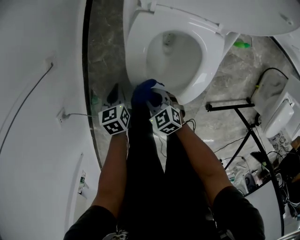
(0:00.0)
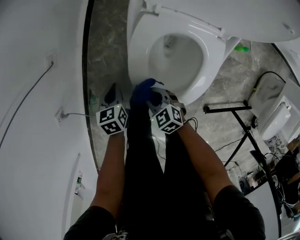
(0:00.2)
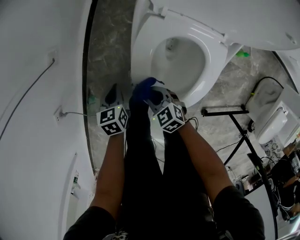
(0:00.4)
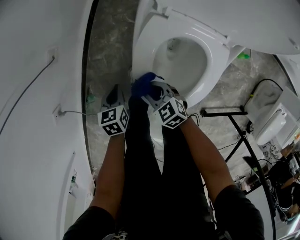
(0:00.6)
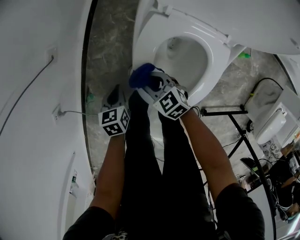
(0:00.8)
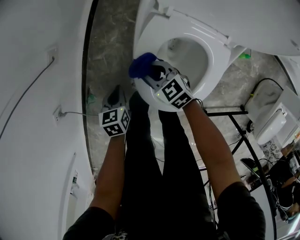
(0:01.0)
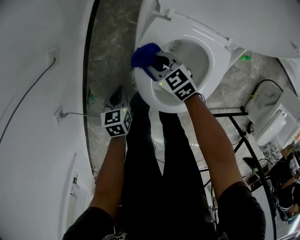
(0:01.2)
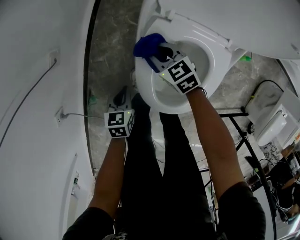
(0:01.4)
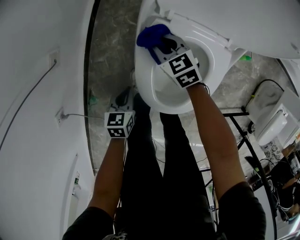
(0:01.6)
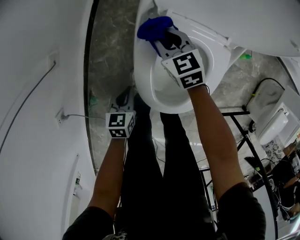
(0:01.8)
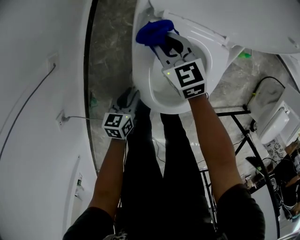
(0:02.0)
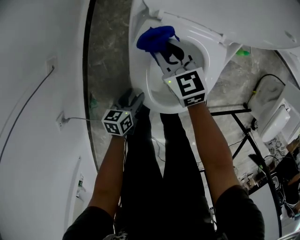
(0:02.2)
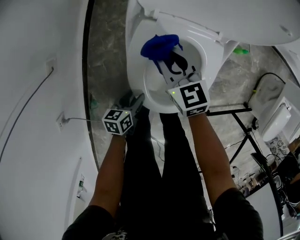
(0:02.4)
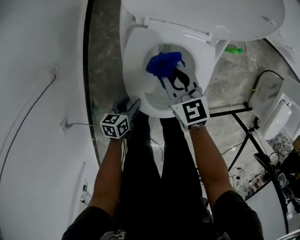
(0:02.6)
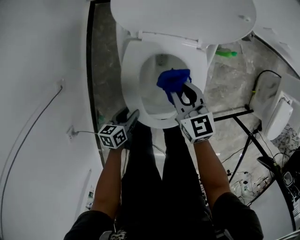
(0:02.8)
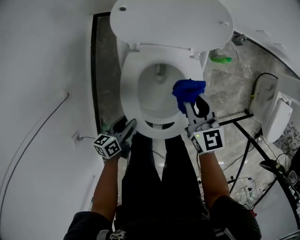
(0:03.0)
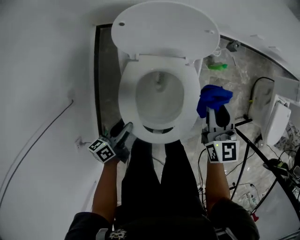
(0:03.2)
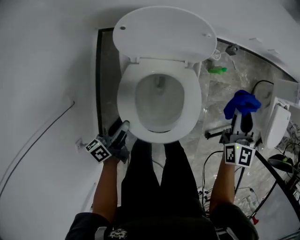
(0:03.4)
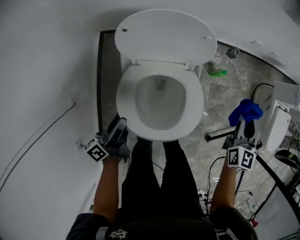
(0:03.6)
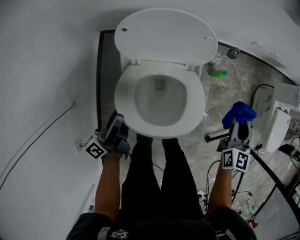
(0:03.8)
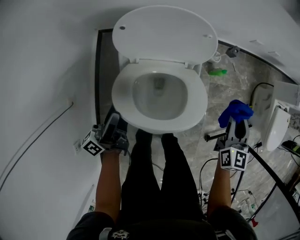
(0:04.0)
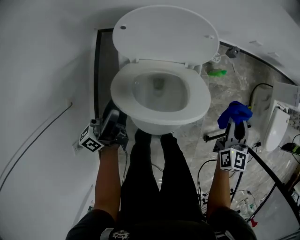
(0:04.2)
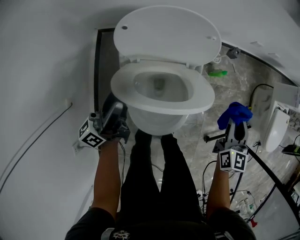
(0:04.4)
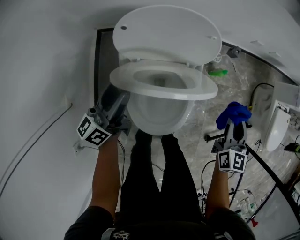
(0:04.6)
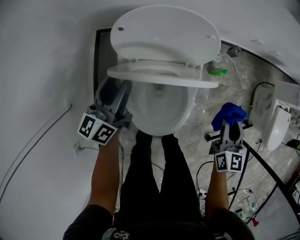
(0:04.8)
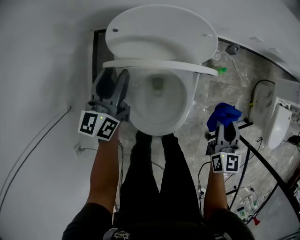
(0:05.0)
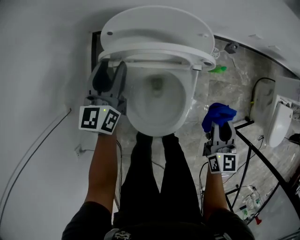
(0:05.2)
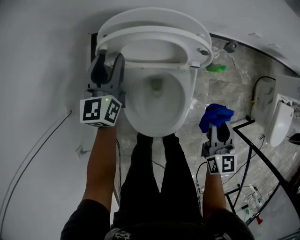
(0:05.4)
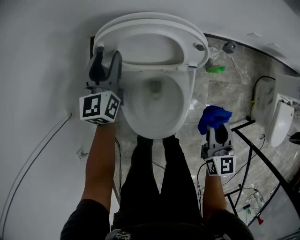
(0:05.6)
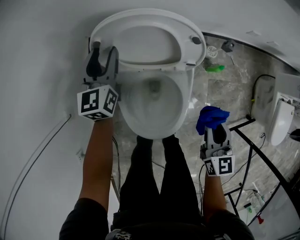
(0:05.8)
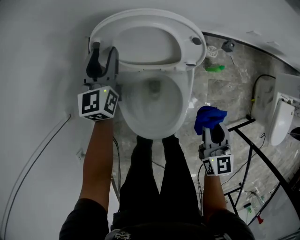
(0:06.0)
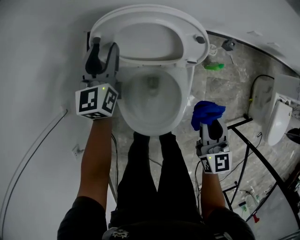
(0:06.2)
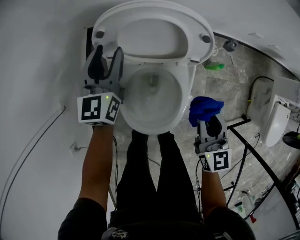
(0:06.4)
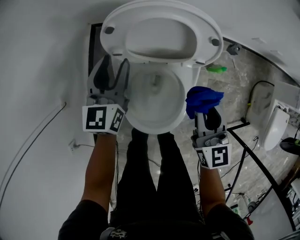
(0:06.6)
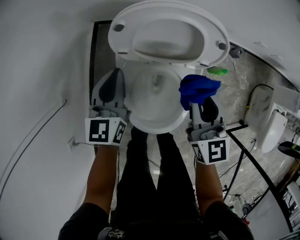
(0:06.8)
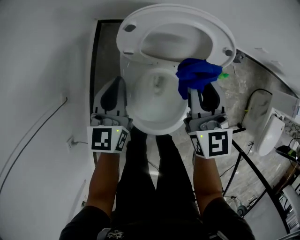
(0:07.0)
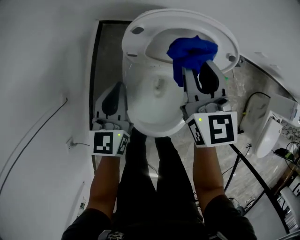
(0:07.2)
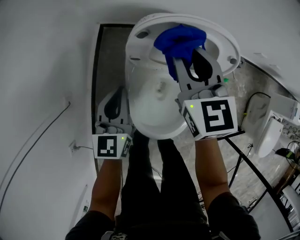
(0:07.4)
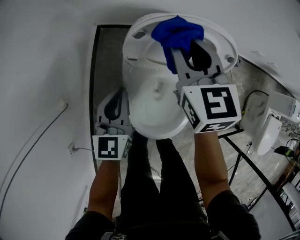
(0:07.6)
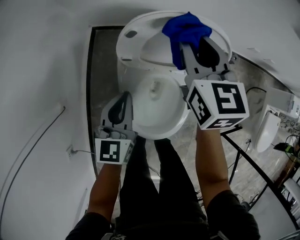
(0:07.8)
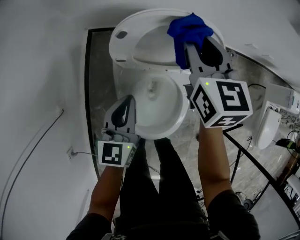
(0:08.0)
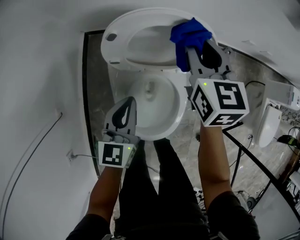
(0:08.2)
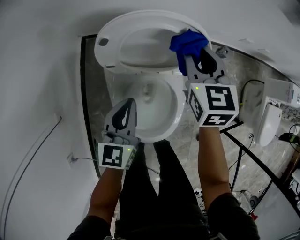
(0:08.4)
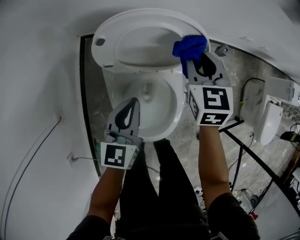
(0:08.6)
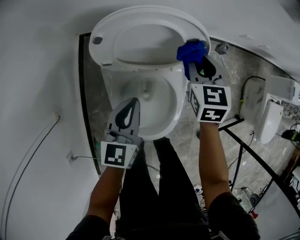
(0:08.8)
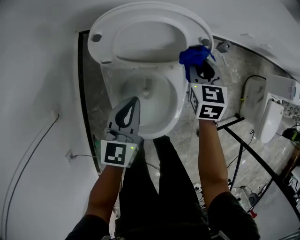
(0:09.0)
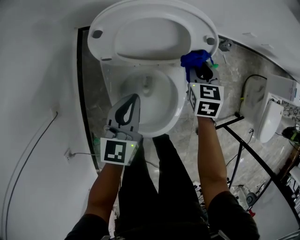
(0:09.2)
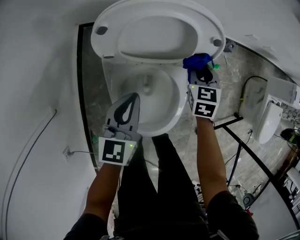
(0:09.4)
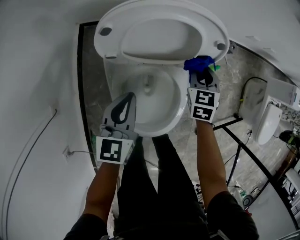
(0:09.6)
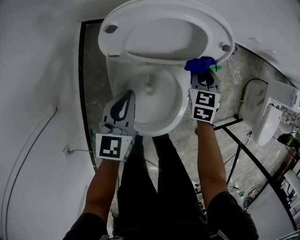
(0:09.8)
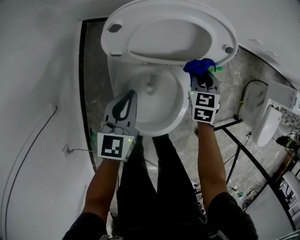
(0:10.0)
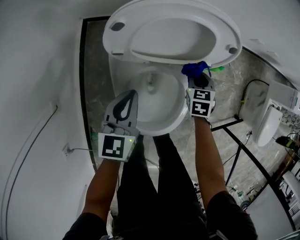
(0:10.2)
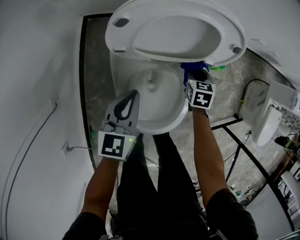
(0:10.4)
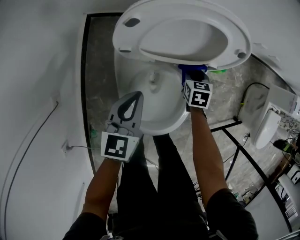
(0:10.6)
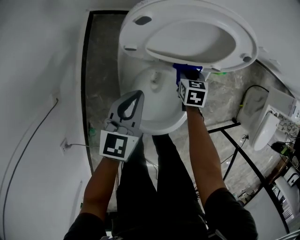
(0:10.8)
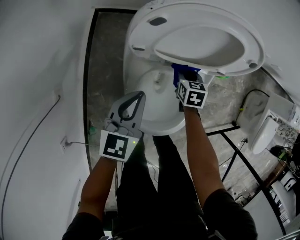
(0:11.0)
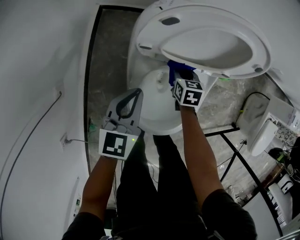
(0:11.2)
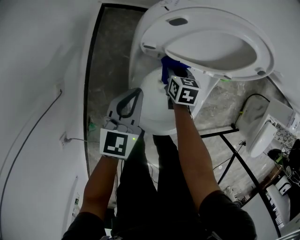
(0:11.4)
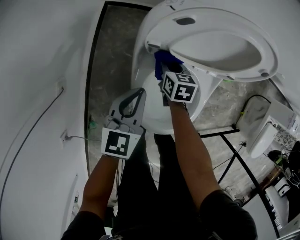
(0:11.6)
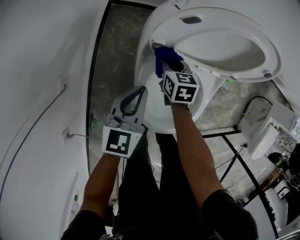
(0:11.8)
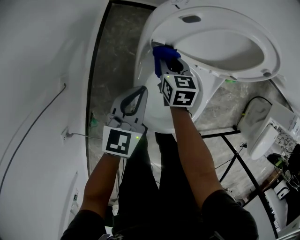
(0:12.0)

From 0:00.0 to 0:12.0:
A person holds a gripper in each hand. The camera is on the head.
From 0:00.0 to 0:01.6: The right gripper is displaced forward and to the right by approximately 25 cm.
From 0:01.6 to 0:03.0: The right gripper moves upward, roughly 20 cm, and turns by roughly 40 degrees, while the left gripper shifts some 10 cm upward, swivels approximately 30 degrees, and opens its fingers.
From 0:03.0 to 0:04.4: The left gripper moves upward and forward, approximately 25 cm, and points its fingers some 50 degrees further upward. The right gripper goes about 20 cm to the right, and rotates about 30 degrees.
From 0:04.4 to 0:06.0: The left gripper goes some 20 cm forward, and rolls clockwise, seen from behind, by roughly 50 degrees. Meanwhile the right gripper shifts about 5 cm to the left.
From 0:06.0 to 0:07.6: The left gripper travels backward and to the left by some 15 cm, and closes. The right gripper travels forward, to the left and upward by about 35 cm, and changes its angle by about 20 degrees.
From 0:07.6 to 0:09.0: The left gripper is displaced to the right by about 10 cm, while the right gripper heads to the right and downward, covering about 25 cm, and swivels about 20 degrees.
From 0:09.0 to 0:10.4: The right gripper heads downward, covering some 15 cm. The left gripper changes place by some 5 cm.
From 0:10.4 to 0:12.0: The left gripper shifts about 5 cm to the left; the right gripper heads to the left, covering approximately 25 cm, and changes its angle by some 20 degrees.

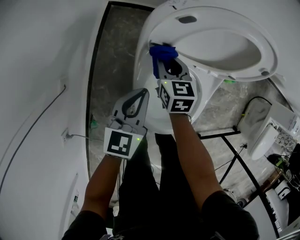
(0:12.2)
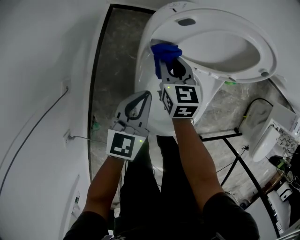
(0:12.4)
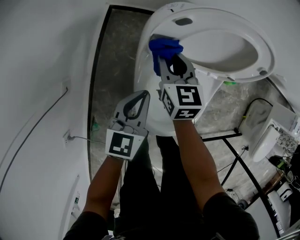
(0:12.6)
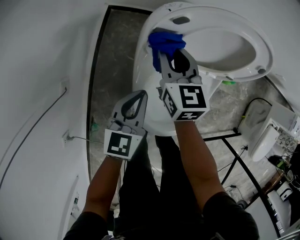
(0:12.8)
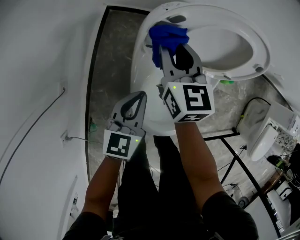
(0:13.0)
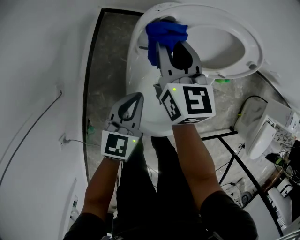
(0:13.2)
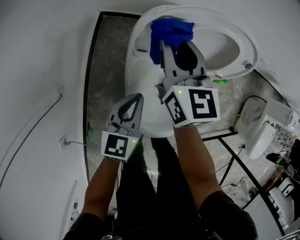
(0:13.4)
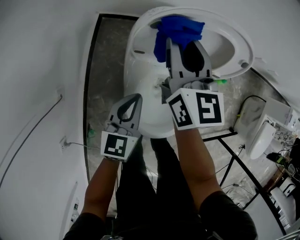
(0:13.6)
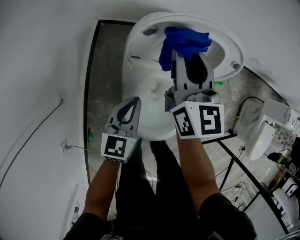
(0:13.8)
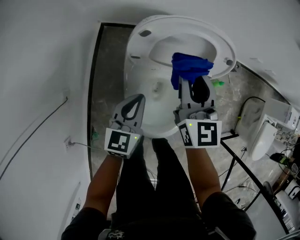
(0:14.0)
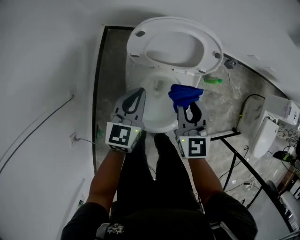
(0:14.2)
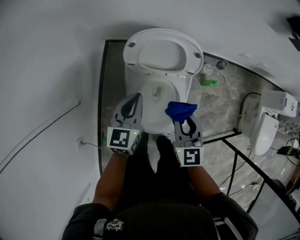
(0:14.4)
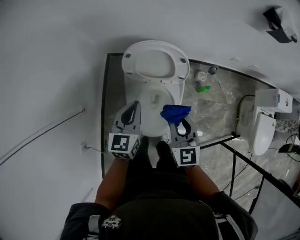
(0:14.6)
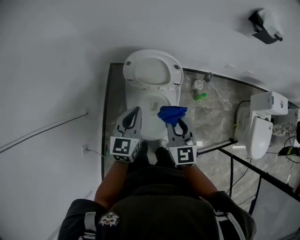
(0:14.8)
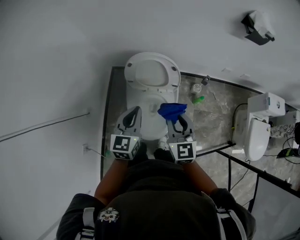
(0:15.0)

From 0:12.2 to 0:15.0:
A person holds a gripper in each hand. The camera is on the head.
From 0:12.2 to 0:13.6: The right gripper is displaced upward by some 20 cm, and rotates about 30 degrees.
From 0:13.6 to 0:15.0: The left gripper travels upward by roughly 25 cm. The right gripper heads backward, upward and to the right, covering some 35 cm.

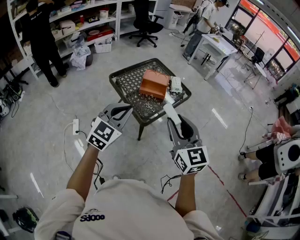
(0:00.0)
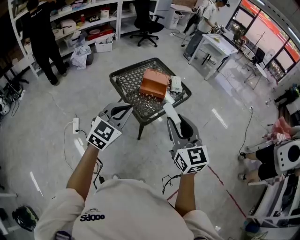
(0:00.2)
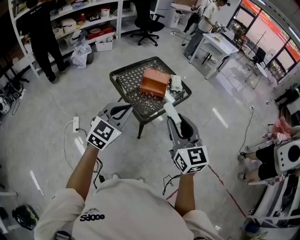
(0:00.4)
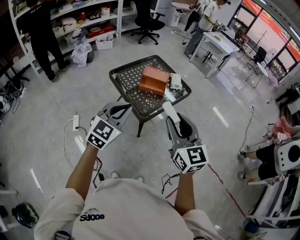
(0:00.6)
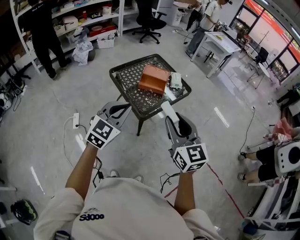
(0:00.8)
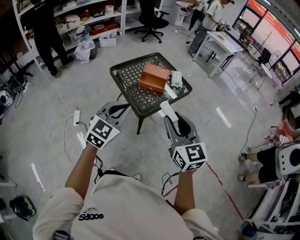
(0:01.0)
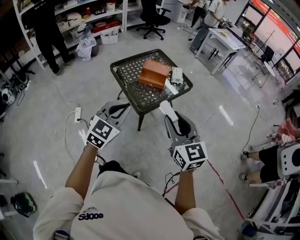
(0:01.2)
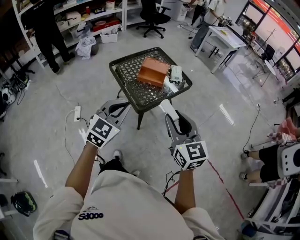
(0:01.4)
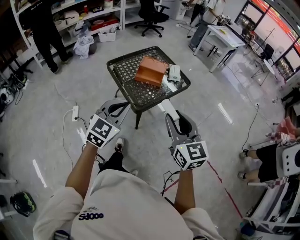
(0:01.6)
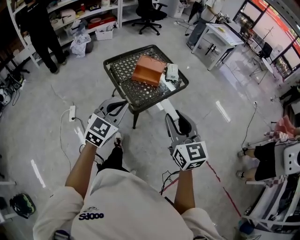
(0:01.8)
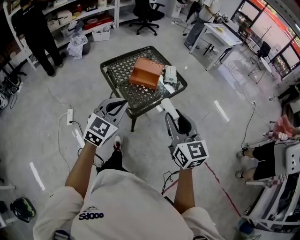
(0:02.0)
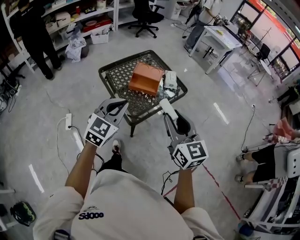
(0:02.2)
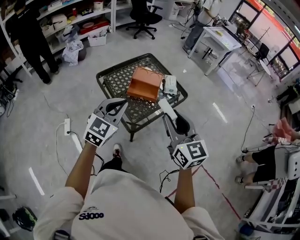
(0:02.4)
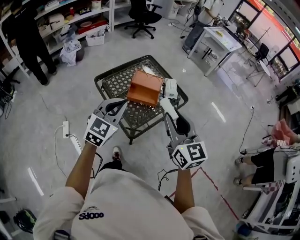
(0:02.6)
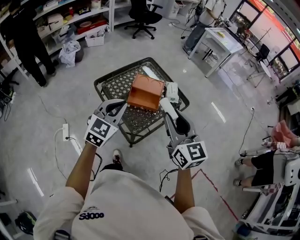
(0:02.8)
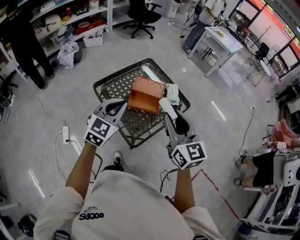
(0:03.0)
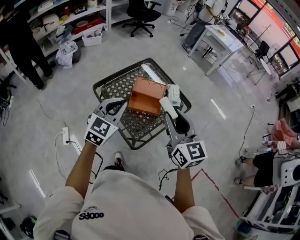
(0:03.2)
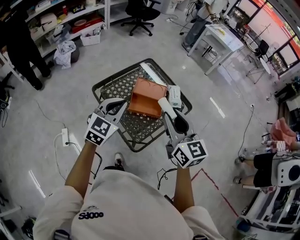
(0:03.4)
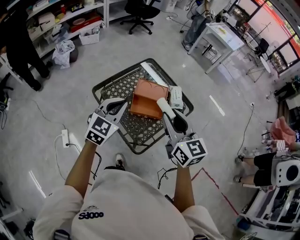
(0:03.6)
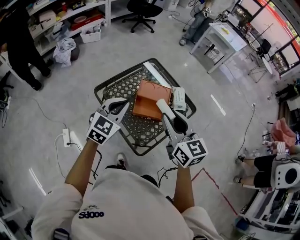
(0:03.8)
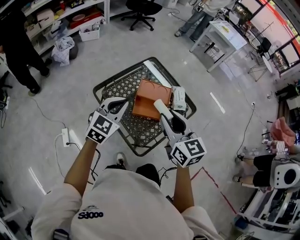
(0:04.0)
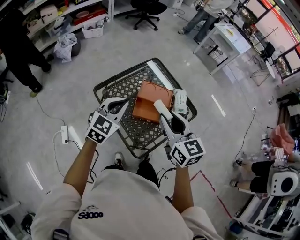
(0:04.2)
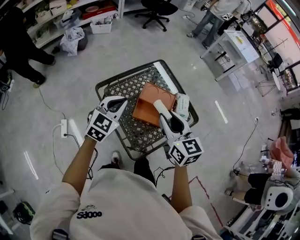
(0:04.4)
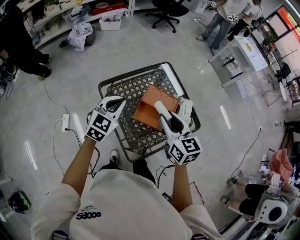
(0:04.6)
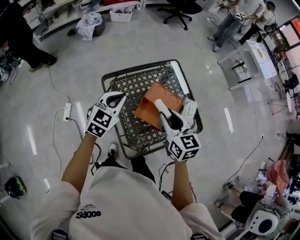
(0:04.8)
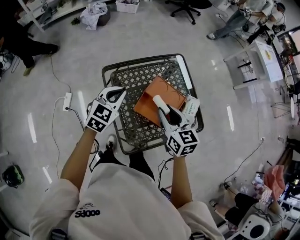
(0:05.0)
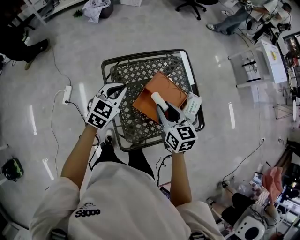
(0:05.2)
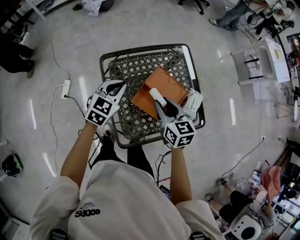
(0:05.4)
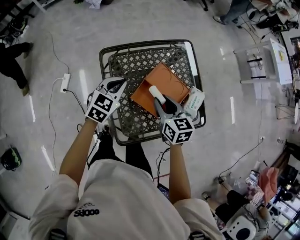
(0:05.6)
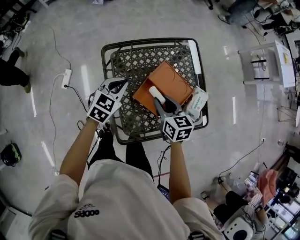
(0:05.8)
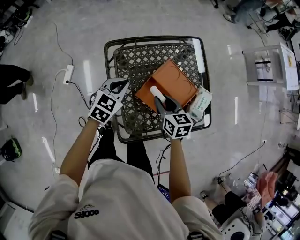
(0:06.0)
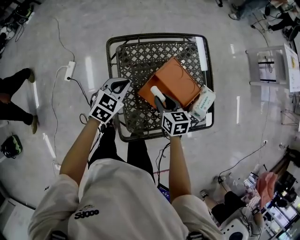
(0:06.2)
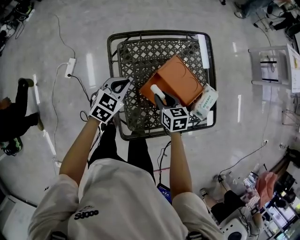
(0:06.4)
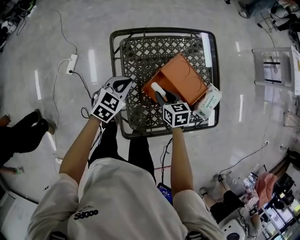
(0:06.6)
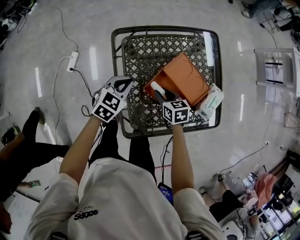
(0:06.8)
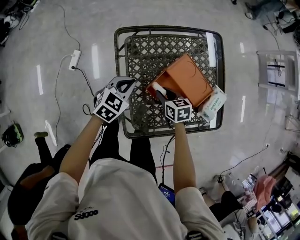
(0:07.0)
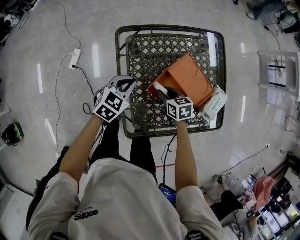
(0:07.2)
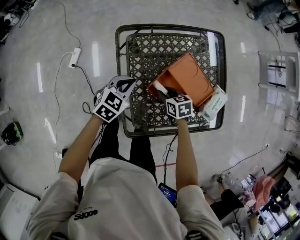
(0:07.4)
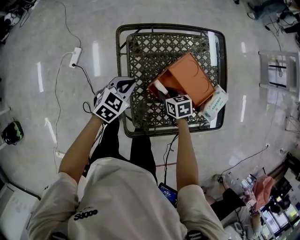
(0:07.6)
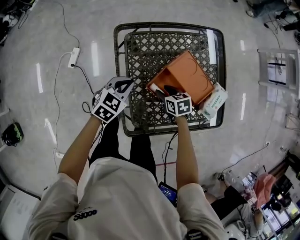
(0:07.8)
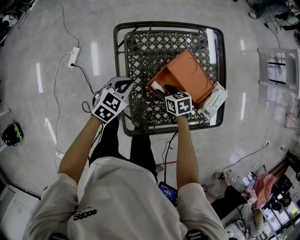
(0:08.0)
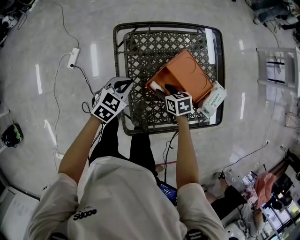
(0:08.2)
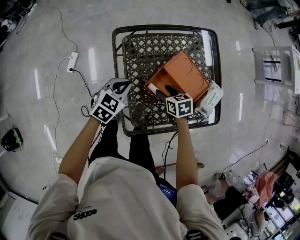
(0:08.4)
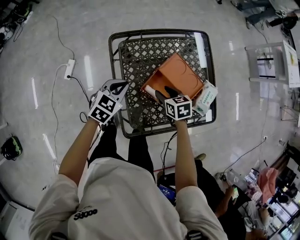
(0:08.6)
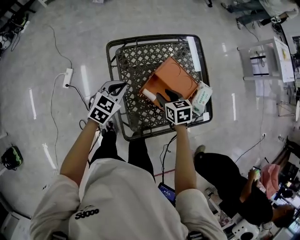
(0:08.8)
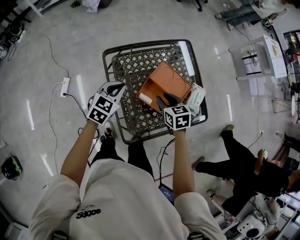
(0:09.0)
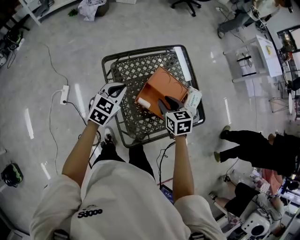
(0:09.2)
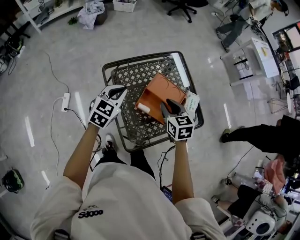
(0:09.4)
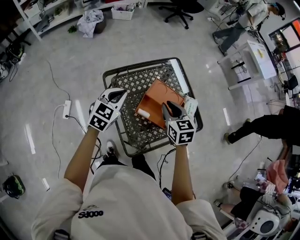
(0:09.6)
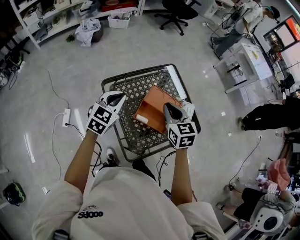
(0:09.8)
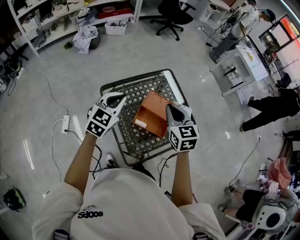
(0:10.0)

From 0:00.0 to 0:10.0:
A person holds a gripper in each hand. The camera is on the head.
From 0:00.0 to 0:01.4: The grippers both shift to the right by roughly 5 cm.
From 0:01.4 to 0:02.8: Both grippers travel together forward, about 25 cm.
From 0:02.8 to 0:04.2: The right gripper is displaced forward, to the left and downward by about 15 cm. Meanwhile the left gripper shifts about 15 cm forward.
From 0:04.2 to 0:05.8: The left gripper shifts roughly 15 cm downward and forward, and rotates about 30 degrees. Meanwhile the right gripper moves downward and forward, roughly 25 cm, and changes its angle by approximately 30 degrees.
From 0:05.8 to 0:07.2: The right gripper travels downward by roughly 15 cm, and swivels some 20 degrees. The left gripper moves downward, roughly 10 cm.
From 0:07.2 to 0:08.6: The right gripper is displaced upward by some 5 cm.
From 0:08.6 to 0:10.0: Both grippers travel together upward, roughly 25 cm. The right gripper swivels about 40 degrees, and closes its fingers; the left gripper changes its angle by some 20 degrees.
